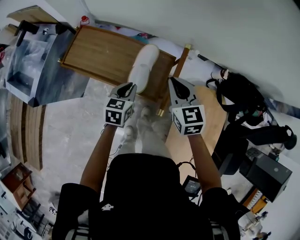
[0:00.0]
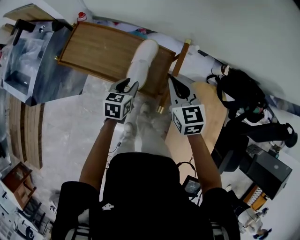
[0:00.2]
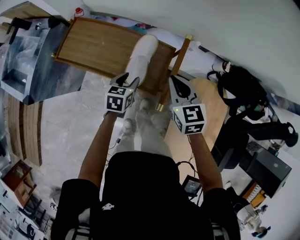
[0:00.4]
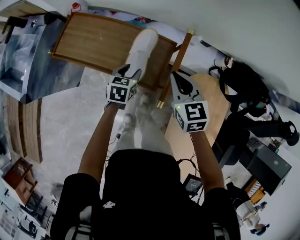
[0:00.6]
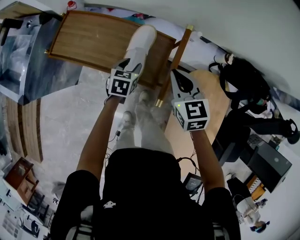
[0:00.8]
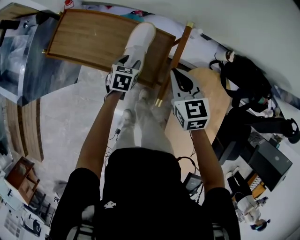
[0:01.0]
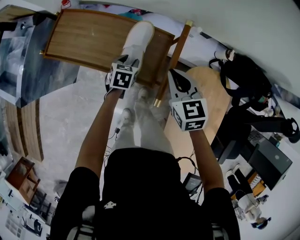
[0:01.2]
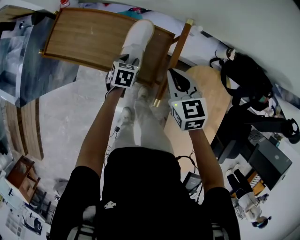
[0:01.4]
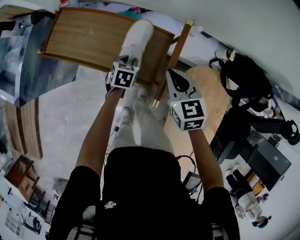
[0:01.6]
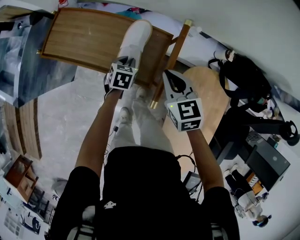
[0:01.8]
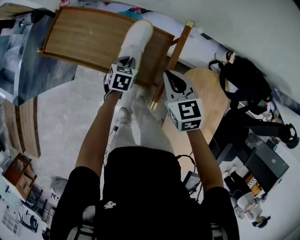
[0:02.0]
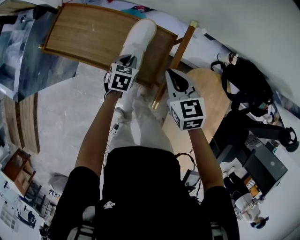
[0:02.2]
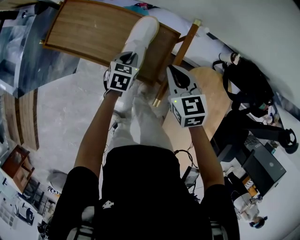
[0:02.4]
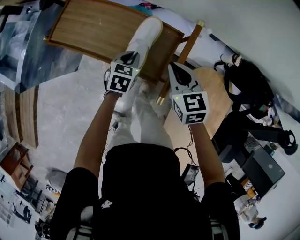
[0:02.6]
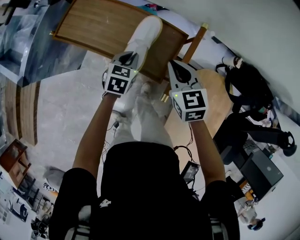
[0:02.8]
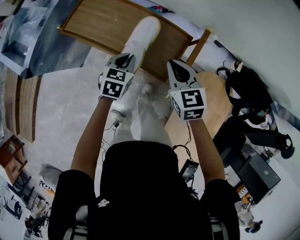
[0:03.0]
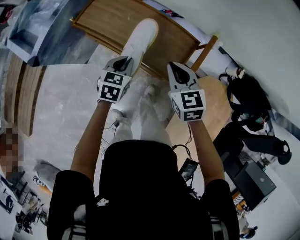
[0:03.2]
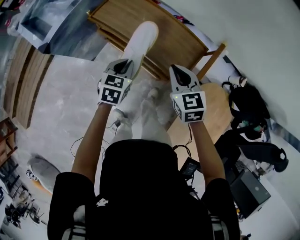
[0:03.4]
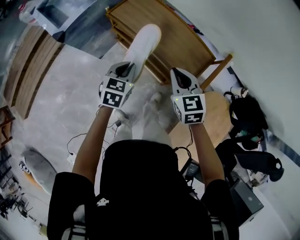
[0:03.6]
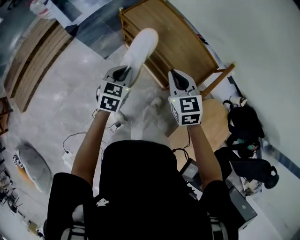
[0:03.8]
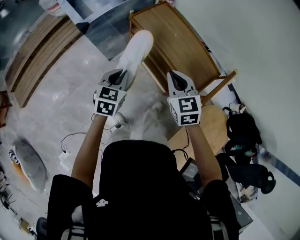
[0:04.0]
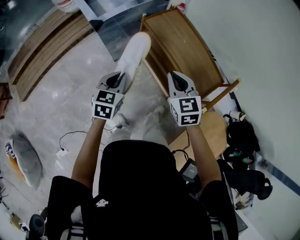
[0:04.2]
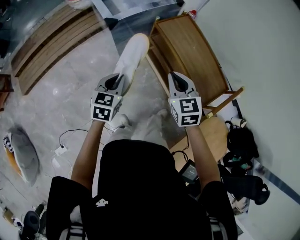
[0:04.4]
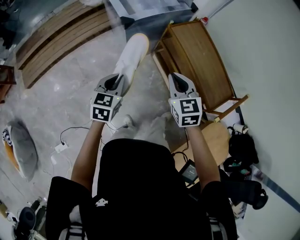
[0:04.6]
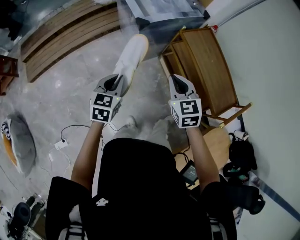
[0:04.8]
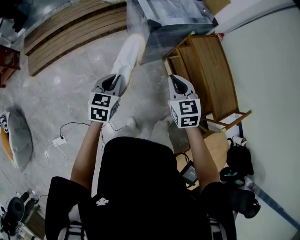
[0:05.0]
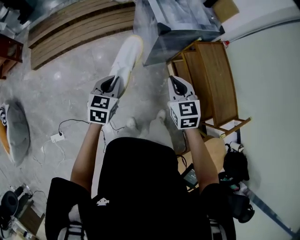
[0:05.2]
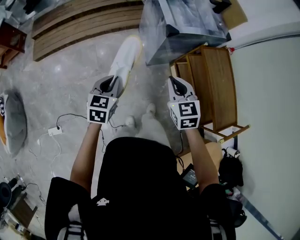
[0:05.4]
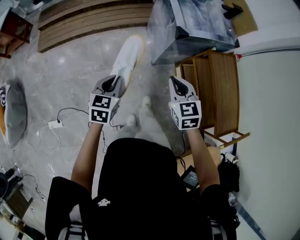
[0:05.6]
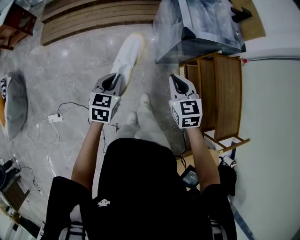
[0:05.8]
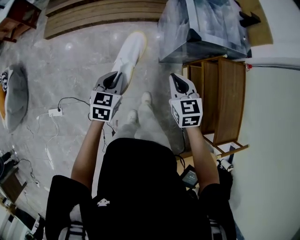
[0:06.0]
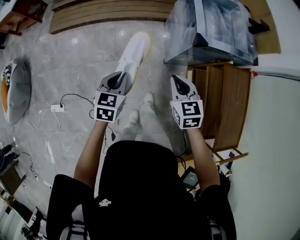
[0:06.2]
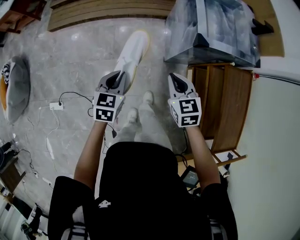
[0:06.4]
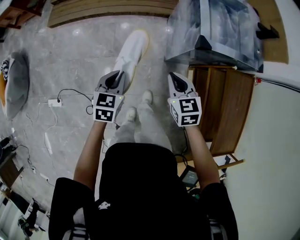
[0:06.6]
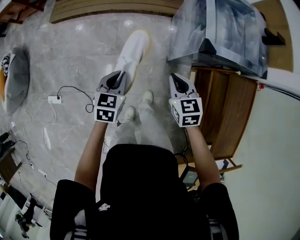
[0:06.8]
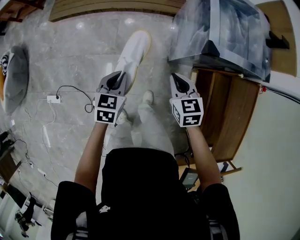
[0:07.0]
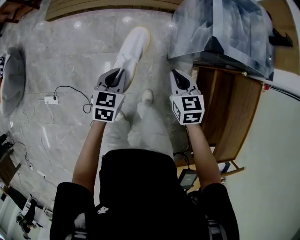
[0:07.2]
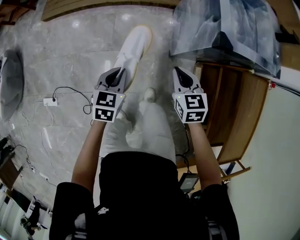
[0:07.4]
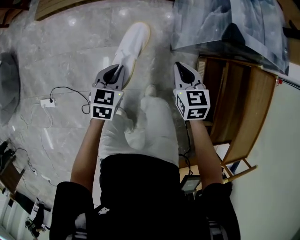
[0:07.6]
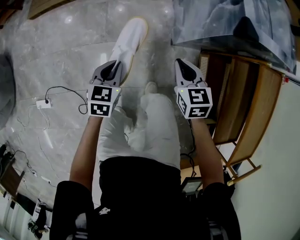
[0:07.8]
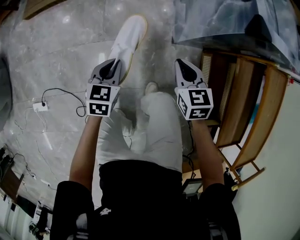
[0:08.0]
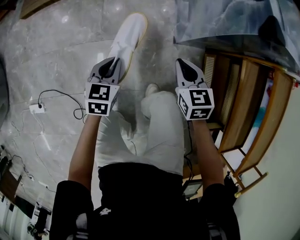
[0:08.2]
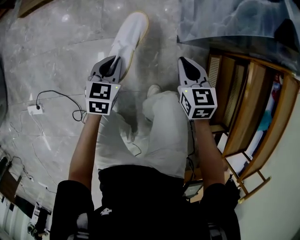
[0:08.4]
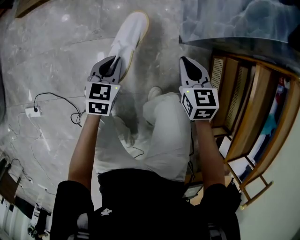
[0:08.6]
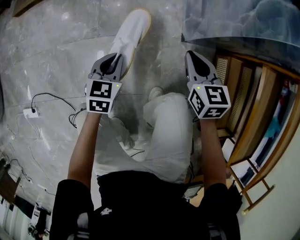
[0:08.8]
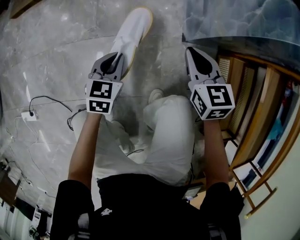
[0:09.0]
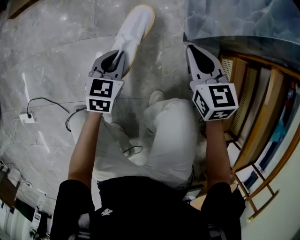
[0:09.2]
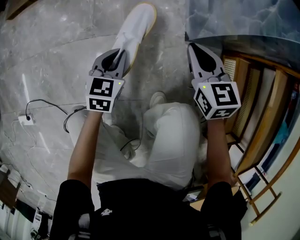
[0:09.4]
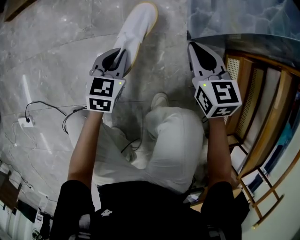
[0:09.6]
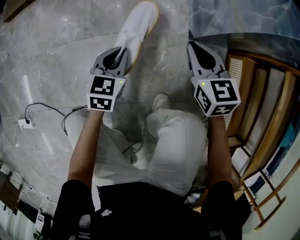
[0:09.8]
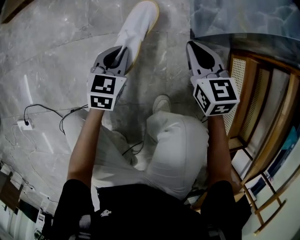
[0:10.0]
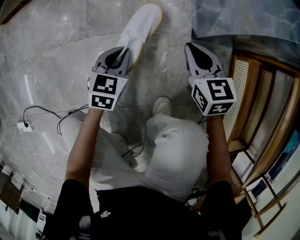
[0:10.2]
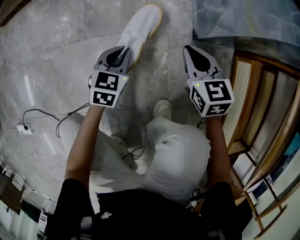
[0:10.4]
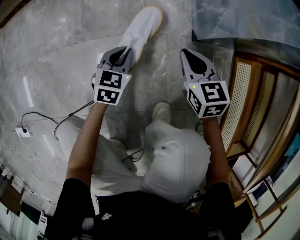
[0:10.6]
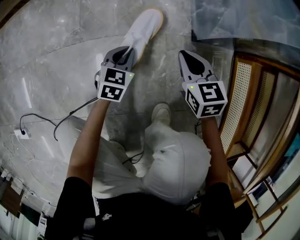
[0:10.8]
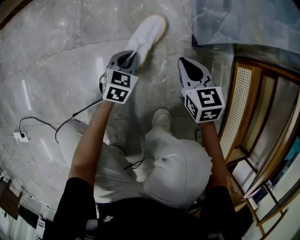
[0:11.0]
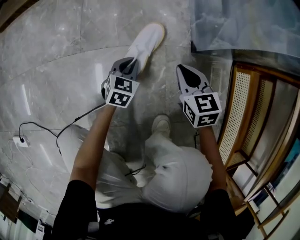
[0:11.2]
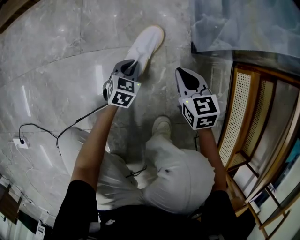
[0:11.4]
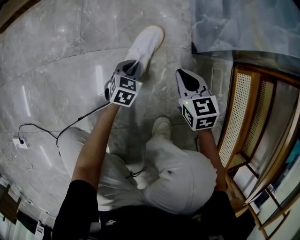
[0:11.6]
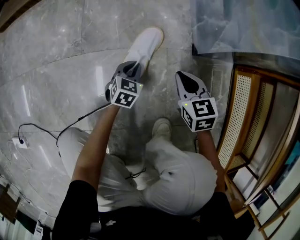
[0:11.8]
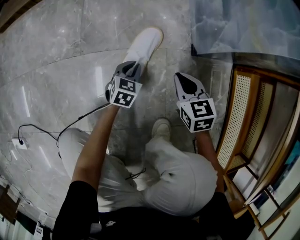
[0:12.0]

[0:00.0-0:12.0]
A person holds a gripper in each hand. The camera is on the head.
0:00.0 to 0:01.6: The left gripper goes some 15 cm downward and forward, while the right gripper shifts some 10 cm downward.
0:01.6 to 0:03.0: The right gripper shifts roughly 10 cm to the left. The left gripper moves upward and to the left, roughly 15 cm.
0:03.0 to 0:04.4: The left gripper shifts by about 50 cm, and turns by approximately 30 degrees, while the right gripper moves some 35 cm, and swivels roughly 30 degrees.
0:04.4 to 0:06.0: The left gripper changes place by about 30 cm, and swivels about 30 degrees, while the right gripper ends up approximately 30 cm from where it was, and changes its angle by about 30 degrees.
0:06.0 to 0:07.6: The right gripper shifts approximately 25 cm downward and forward. Meanwhile the left gripper shifts roughly 20 cm downward.
0:07.6 to 0:09.0: The grippers both shift downward by some 30 cm.
0:09.0 to 0:10.4: Both grippers move downward, roughly 20 cm.
0:10.4 to 0:12.0: Both grippers travel together downward, approximately 10 cm.

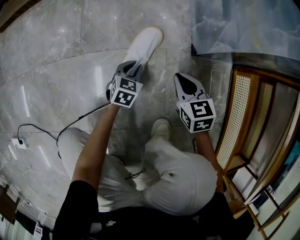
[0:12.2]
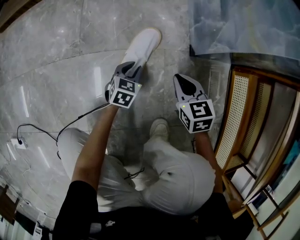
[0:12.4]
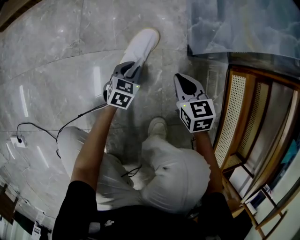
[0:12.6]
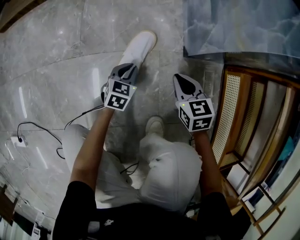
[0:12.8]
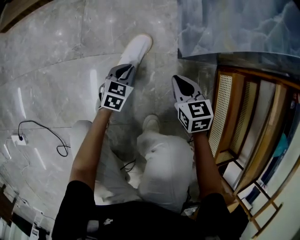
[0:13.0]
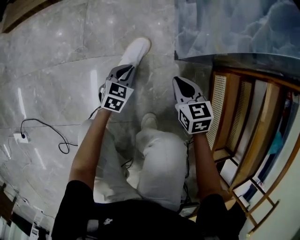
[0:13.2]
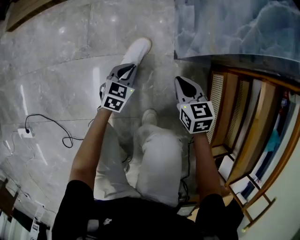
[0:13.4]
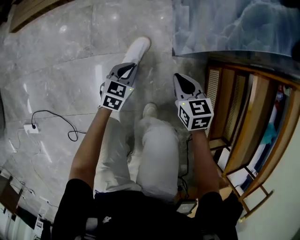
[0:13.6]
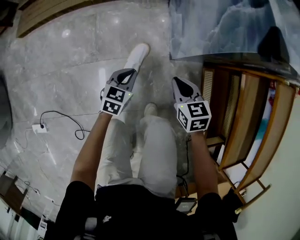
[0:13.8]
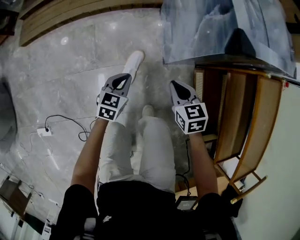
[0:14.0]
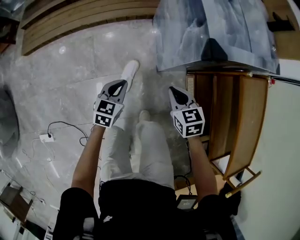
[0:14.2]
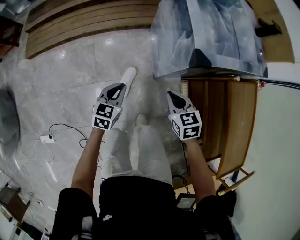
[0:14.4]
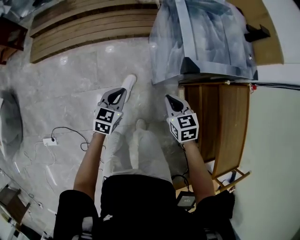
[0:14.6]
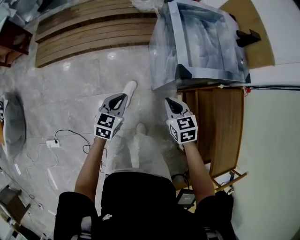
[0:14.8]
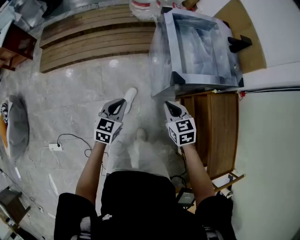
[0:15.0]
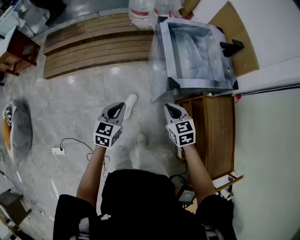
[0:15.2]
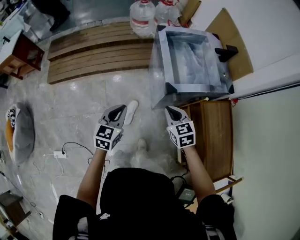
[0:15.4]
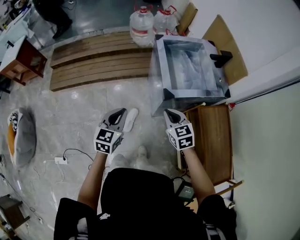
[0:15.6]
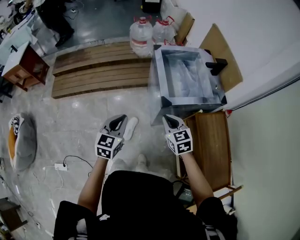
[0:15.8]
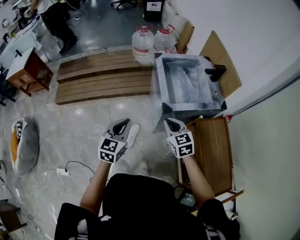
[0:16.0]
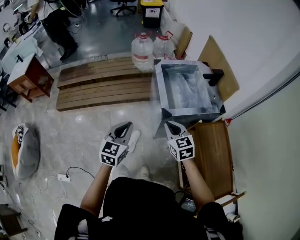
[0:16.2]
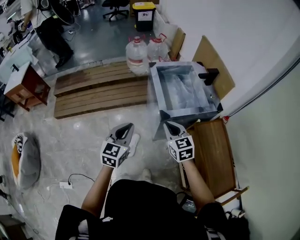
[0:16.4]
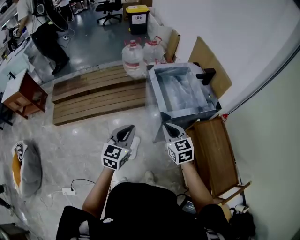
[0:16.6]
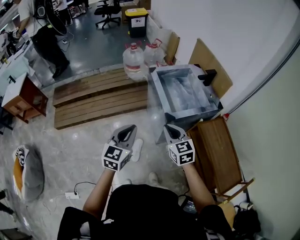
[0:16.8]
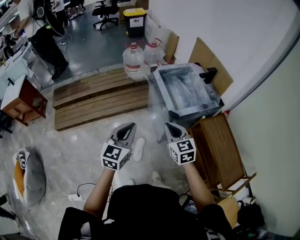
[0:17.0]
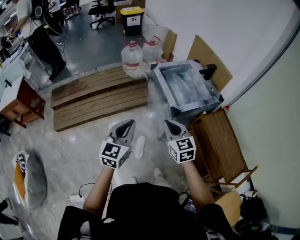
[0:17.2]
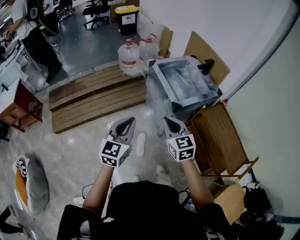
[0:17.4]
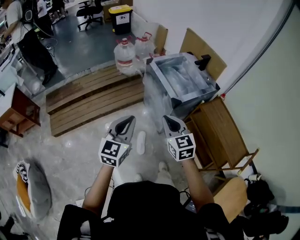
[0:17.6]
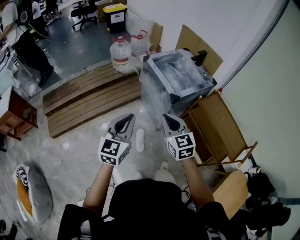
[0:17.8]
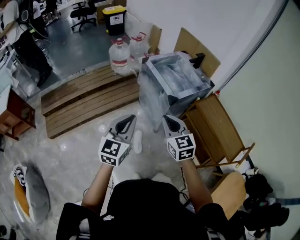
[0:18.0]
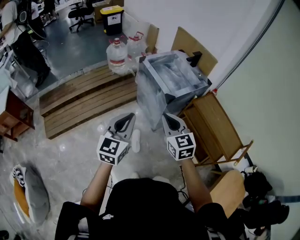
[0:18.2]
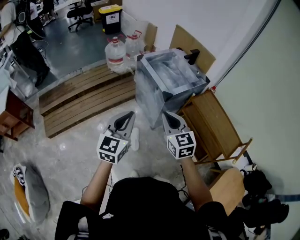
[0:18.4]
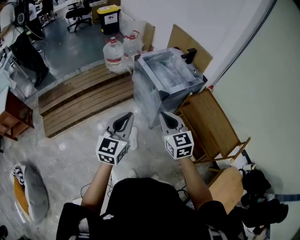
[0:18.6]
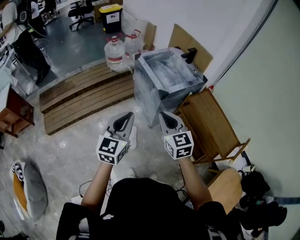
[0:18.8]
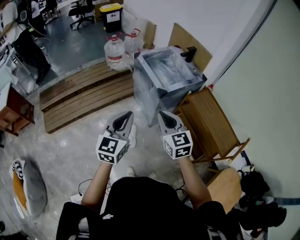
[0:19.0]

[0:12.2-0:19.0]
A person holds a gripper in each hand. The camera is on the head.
0:12.2 to 0:13.6: Both grippers move upward, some 25 cm.
0:13.6 to 0:15.0: The grippers both shift upward by about 50 cm.
0:15.0 to 0:16.2: The grippers both shift upward by some 20 cm.
0:16.2 to 0:17.6: The right gripper moves to the left, backward and upward, about 20 cm, and rotates approximately 20 degrees, while the left gripper shifts about 15 cm to the left and upward, and rotates roughly 20 degrees.
0:17.6 to 0:19.0: The left gripper shifts some 10 cm to the right and backward; the right gripper goes approximately 10 cm backward and to the right.

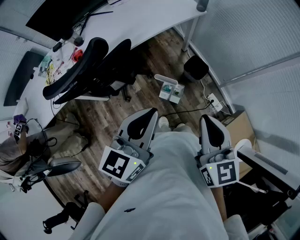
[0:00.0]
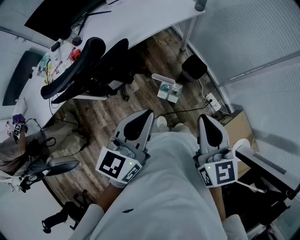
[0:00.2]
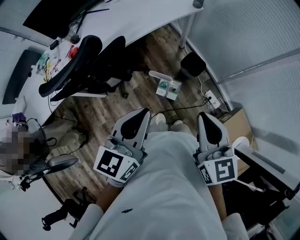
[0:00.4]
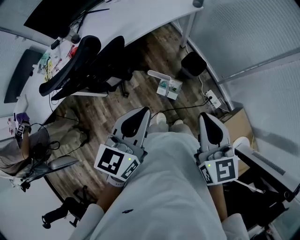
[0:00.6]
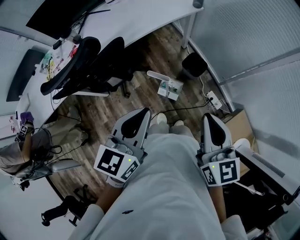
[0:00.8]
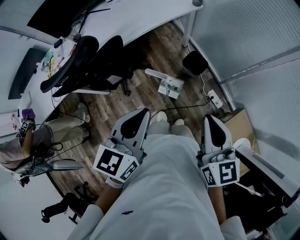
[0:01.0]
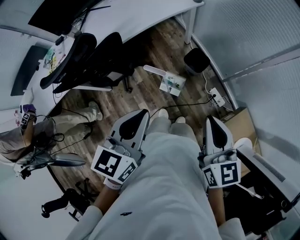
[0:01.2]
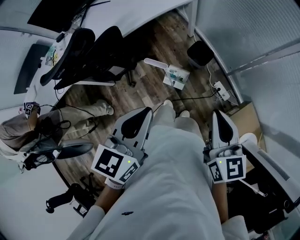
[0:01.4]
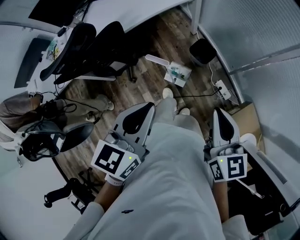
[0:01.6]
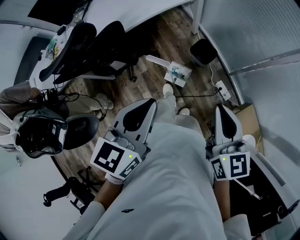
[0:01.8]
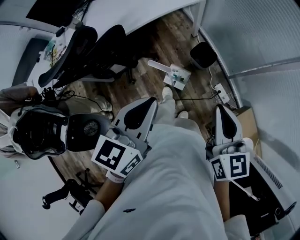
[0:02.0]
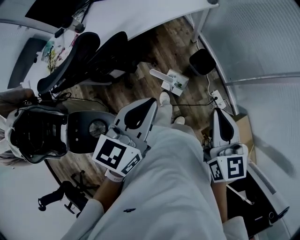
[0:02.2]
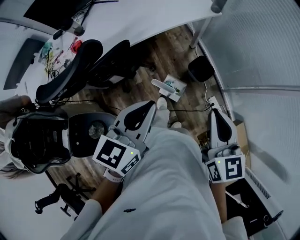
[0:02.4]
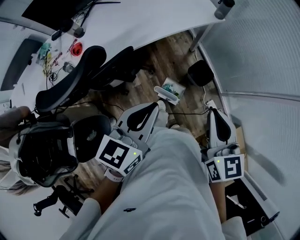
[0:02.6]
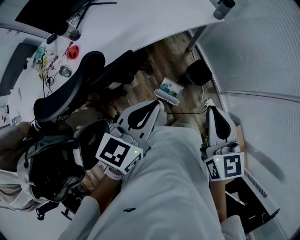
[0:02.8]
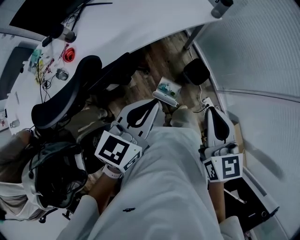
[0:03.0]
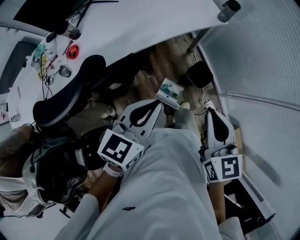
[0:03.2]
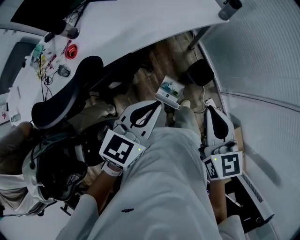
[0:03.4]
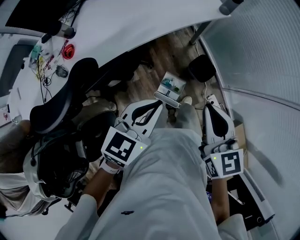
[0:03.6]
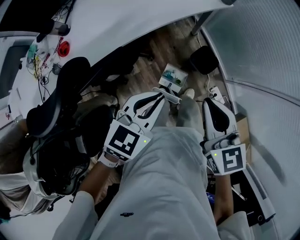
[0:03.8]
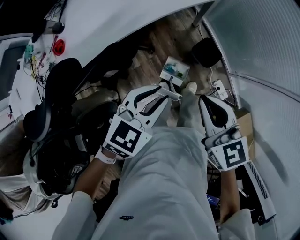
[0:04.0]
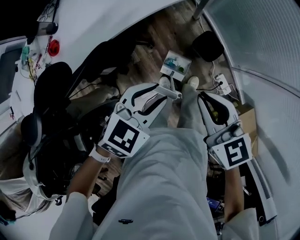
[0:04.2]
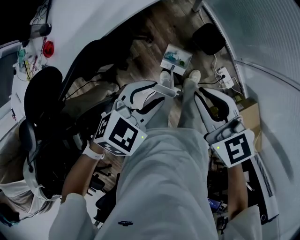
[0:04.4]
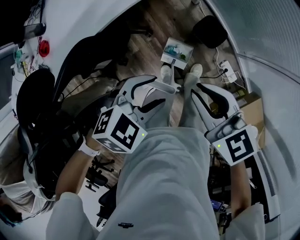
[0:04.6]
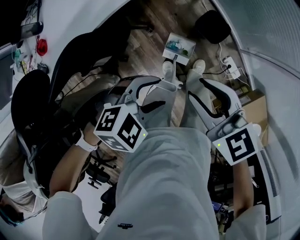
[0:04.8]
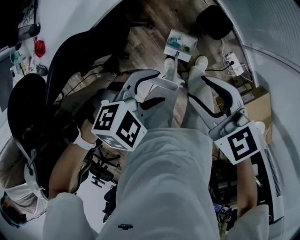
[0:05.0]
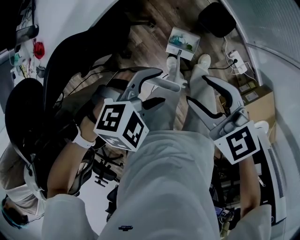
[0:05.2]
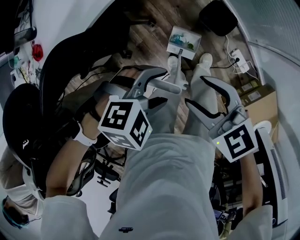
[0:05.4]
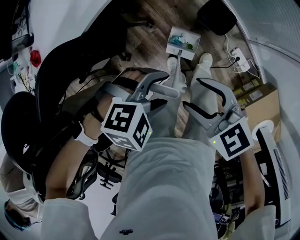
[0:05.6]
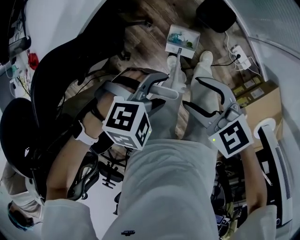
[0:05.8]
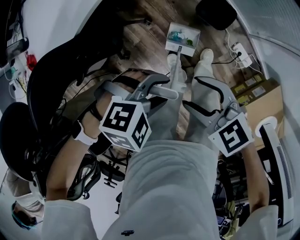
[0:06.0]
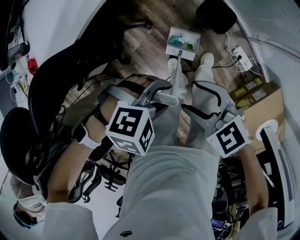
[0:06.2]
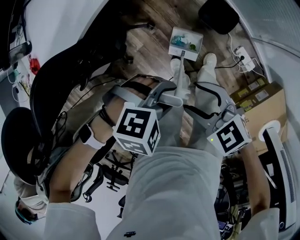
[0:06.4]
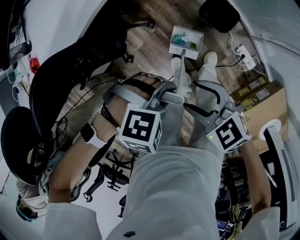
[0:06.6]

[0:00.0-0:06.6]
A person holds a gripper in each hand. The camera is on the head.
0:00.0 to 0:01.6: Both grippers travel together to the right, approximately 10 cm.
0:01.6 to 0:03.2: The two grippers go about 25 cm forward and to the left.
0:03.2 to 0:05.0: Both grippers travel together downward, roughly 20 cm. The right gripper changes its angle by some 30 degrees, and opens its fingers. The left gripper points its fingers roughly 40 degrees further downward, and opens.
0:05.0 to 0:06.6: Both grippers travel together downward, roughly 10 cm. The left gripper rotates some 30 degrees, and closes its fingers.
